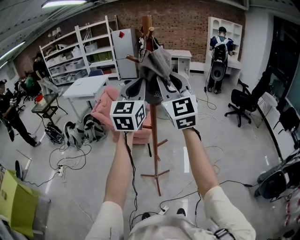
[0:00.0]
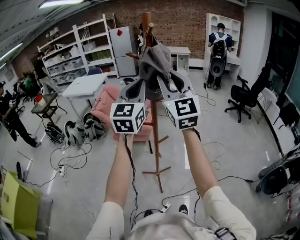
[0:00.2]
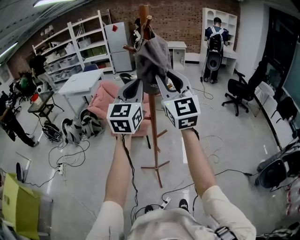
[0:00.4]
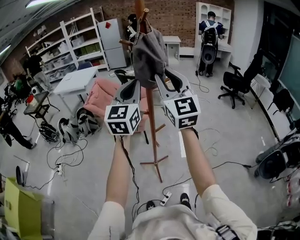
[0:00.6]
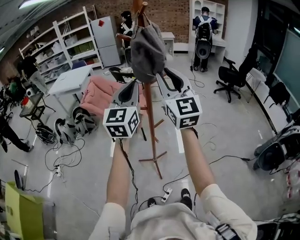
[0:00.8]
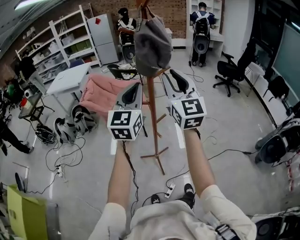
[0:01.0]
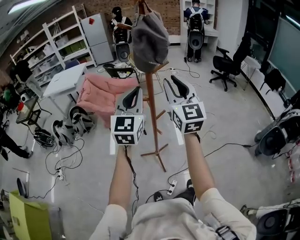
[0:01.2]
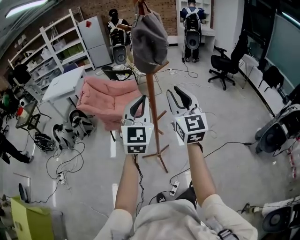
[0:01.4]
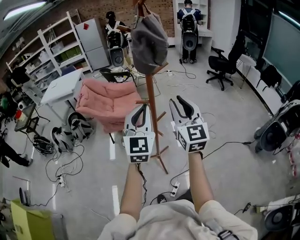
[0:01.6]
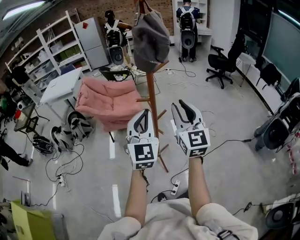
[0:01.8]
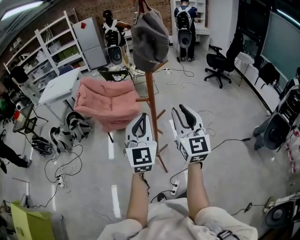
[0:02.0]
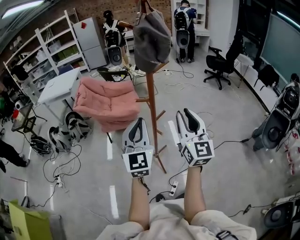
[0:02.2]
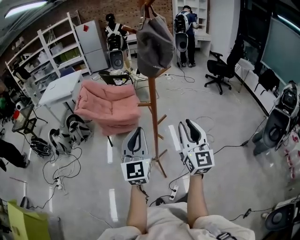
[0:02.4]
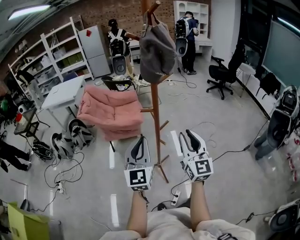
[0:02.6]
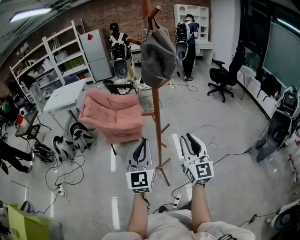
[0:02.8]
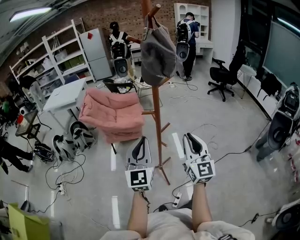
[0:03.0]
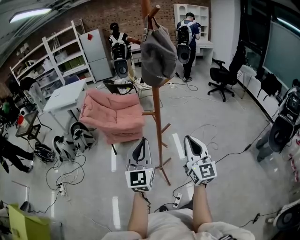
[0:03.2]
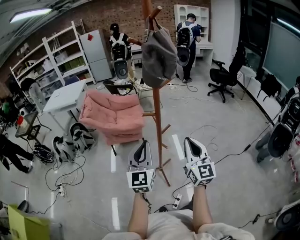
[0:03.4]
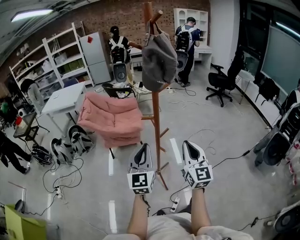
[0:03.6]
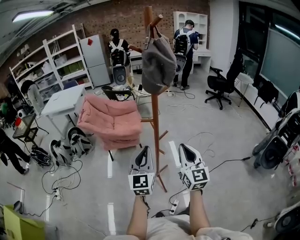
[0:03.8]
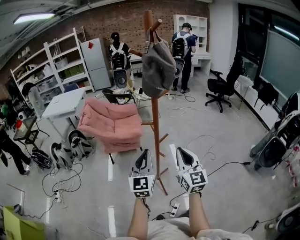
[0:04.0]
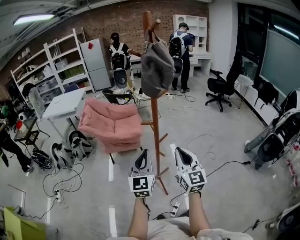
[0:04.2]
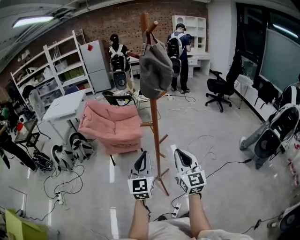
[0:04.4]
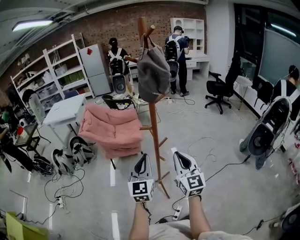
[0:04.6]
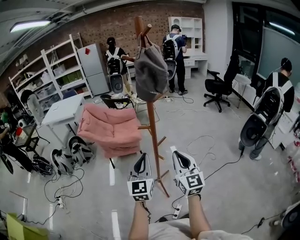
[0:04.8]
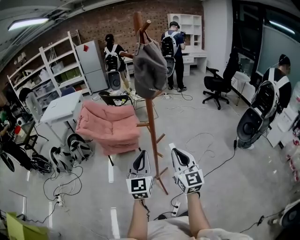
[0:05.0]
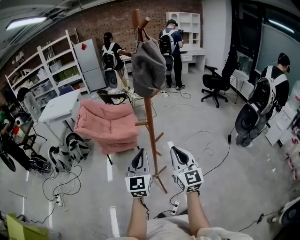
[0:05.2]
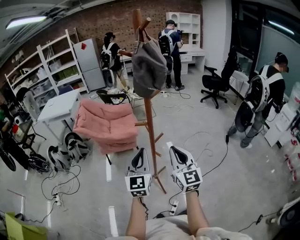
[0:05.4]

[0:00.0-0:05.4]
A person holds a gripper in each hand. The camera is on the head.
0.0 to 1.4 s: The two grippers go some 20 cm downward and backward. The right gripper rotates about 20 degrees.
1.4 to 2.8 s: The grippers both shift downward and backward by some 15 cm.
2.8 to 4.0 s: The right gripper closes.
4.0 to 5.4 s: The two grippers keep their place.

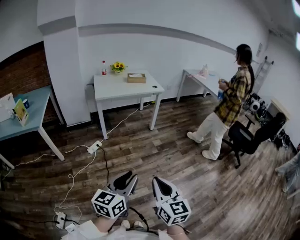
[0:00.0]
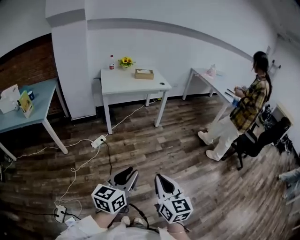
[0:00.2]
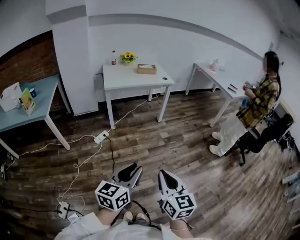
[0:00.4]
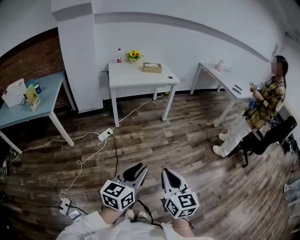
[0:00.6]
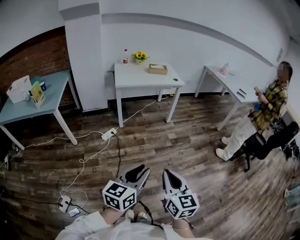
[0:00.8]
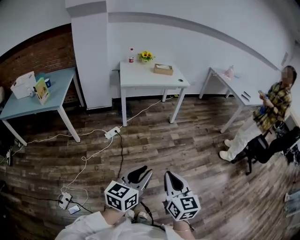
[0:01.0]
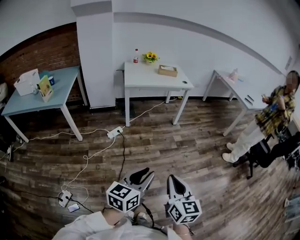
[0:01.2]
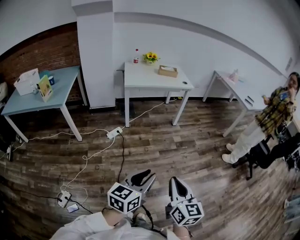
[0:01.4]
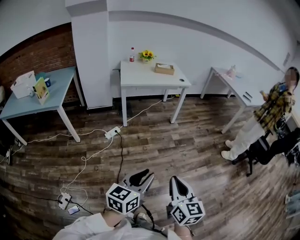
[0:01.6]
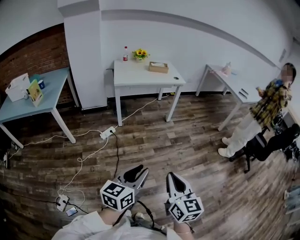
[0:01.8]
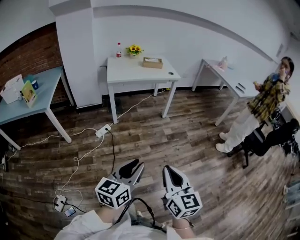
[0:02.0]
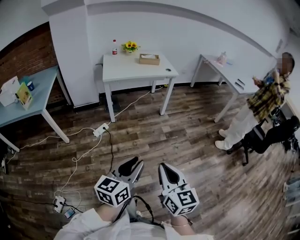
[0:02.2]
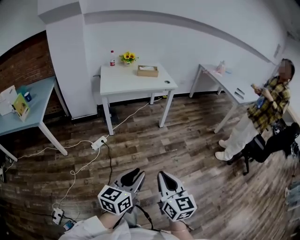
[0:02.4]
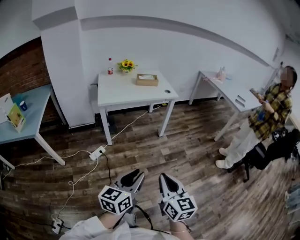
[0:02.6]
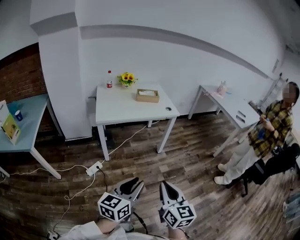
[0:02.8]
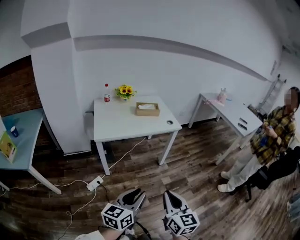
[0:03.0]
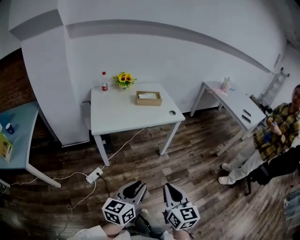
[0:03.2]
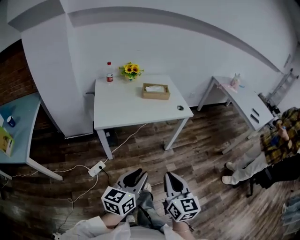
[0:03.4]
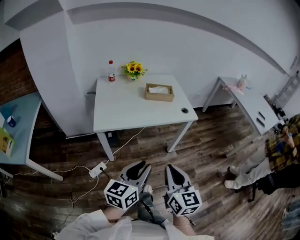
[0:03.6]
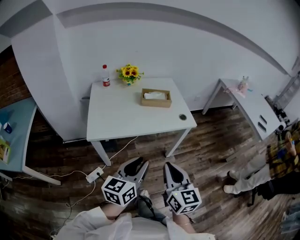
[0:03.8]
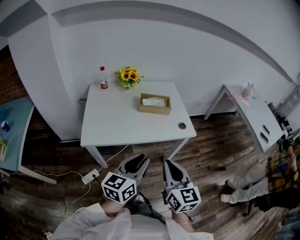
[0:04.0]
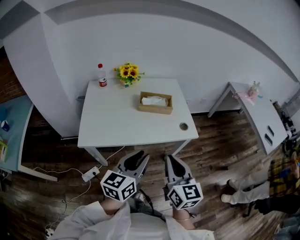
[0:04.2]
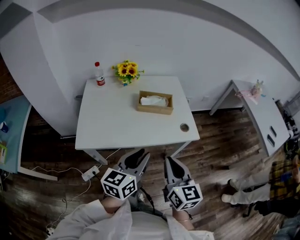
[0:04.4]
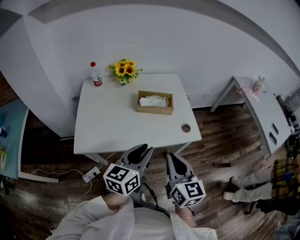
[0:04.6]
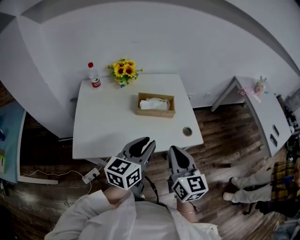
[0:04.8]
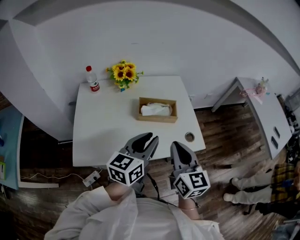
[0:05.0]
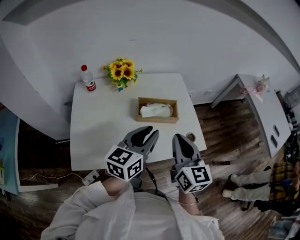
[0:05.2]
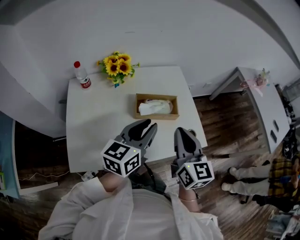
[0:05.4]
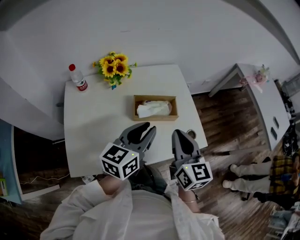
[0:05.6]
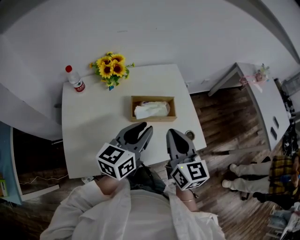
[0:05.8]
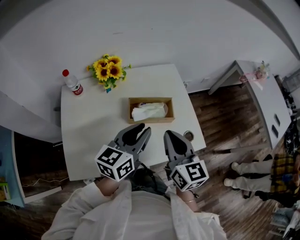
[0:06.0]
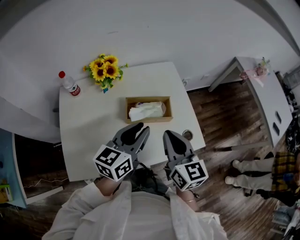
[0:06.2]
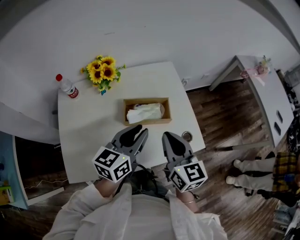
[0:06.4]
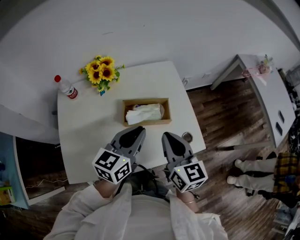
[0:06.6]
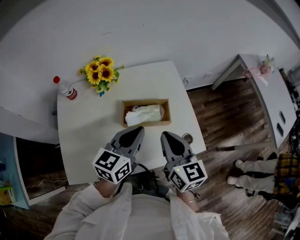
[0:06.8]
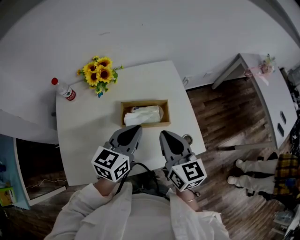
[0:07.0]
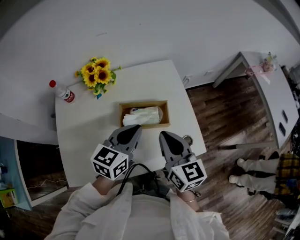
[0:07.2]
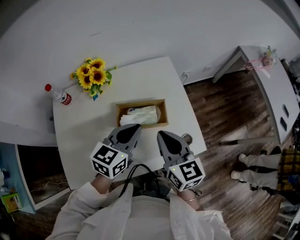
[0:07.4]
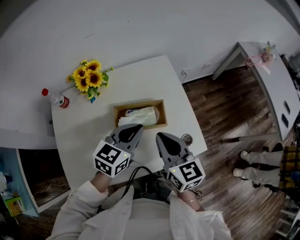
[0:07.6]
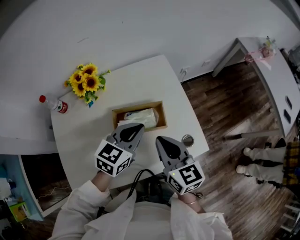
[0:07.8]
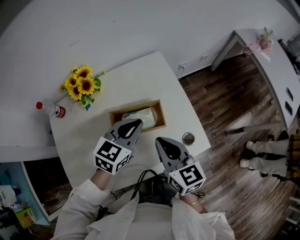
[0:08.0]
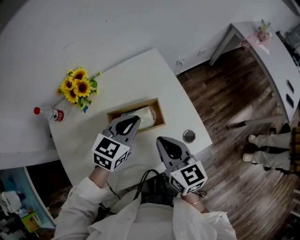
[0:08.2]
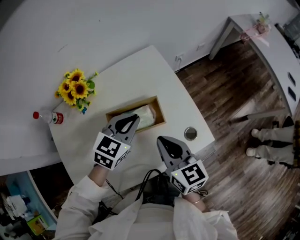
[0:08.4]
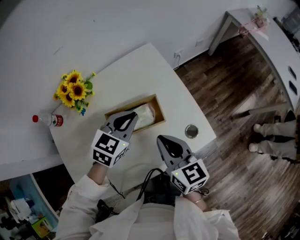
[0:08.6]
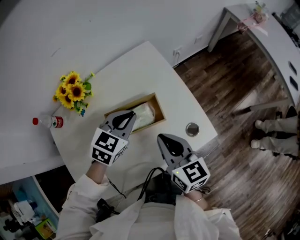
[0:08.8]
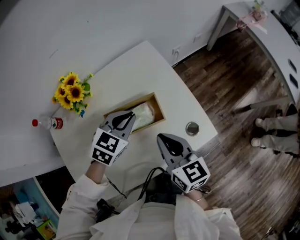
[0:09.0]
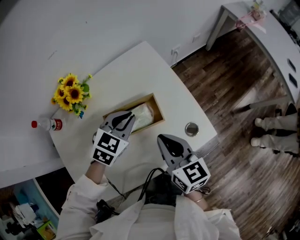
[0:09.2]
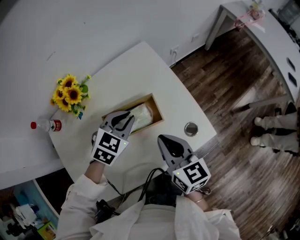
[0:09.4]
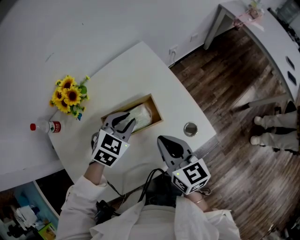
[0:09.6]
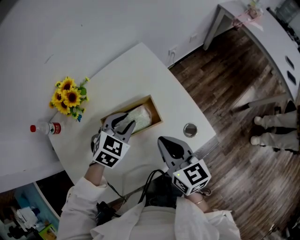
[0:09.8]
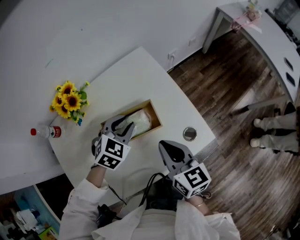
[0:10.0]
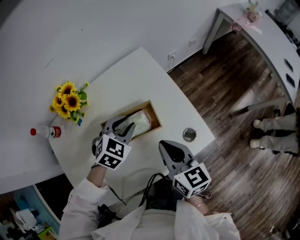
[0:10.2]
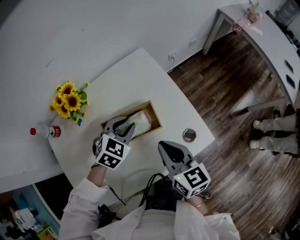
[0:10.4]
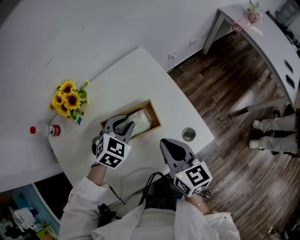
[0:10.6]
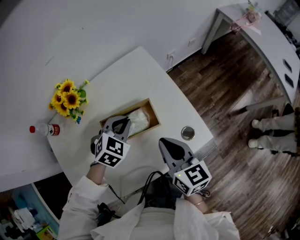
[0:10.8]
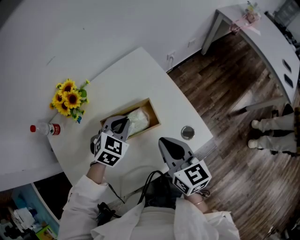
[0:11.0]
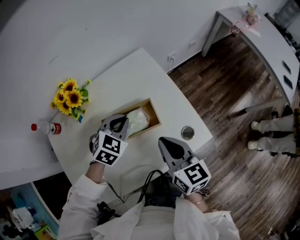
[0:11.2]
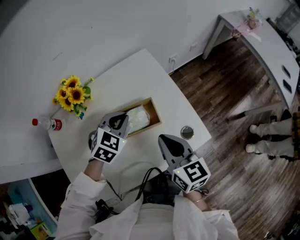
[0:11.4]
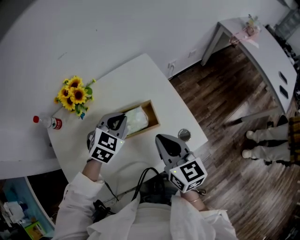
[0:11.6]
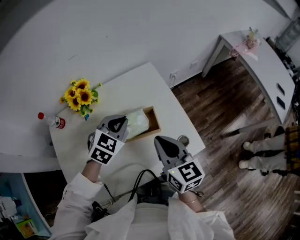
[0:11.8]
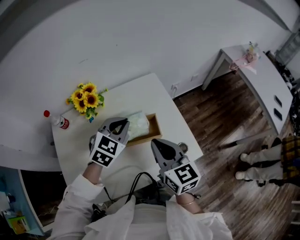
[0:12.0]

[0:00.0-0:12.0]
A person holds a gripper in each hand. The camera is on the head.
0.0 to 1.6 s: The grippers stay close to where they were, moving slightly.
1.6 to 3.0 s: Both grippers travel together forward, about 40 cm.
3.0 to 4.4 s: Both grippers are carried forward, some 40 cm.
4.4 to 6.0 s: Both grippers travel together forward, roughly 25 cm.
6.0 to 7.6 s: Both grippers move forward and downward, roughly 10 cm. The left gripper rotates approximately 20 degrees, and closes.
7.6 to 9.0 s: The left gripper heads downward and forward, covering about 10 cm, and rotates roughly 30 degrees.
9.0 to 10.4 s: The left gripper opens.
10.4 to 12.0 s: Both grippers travel together upward, approximately 10 cm. The left gripper closes its fingers.

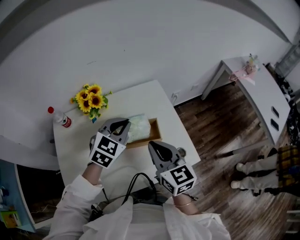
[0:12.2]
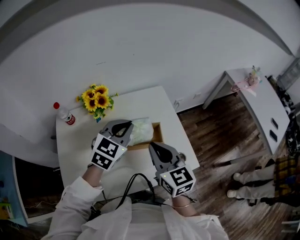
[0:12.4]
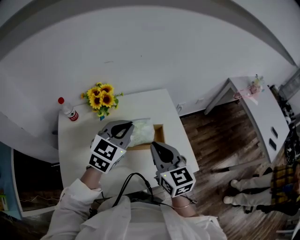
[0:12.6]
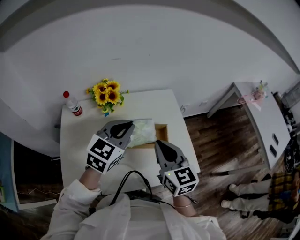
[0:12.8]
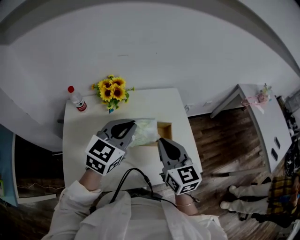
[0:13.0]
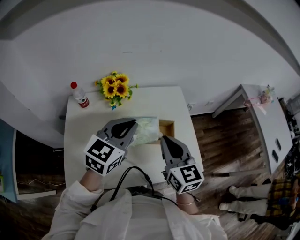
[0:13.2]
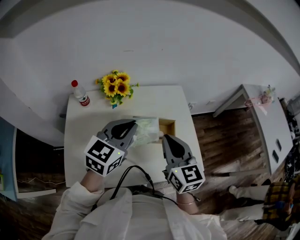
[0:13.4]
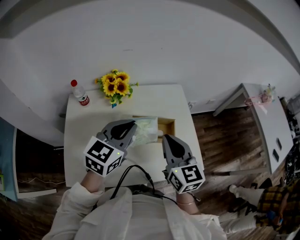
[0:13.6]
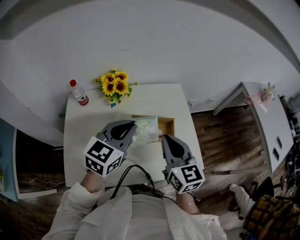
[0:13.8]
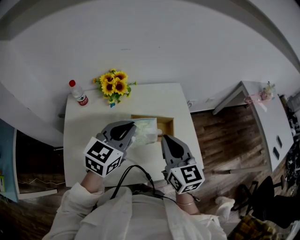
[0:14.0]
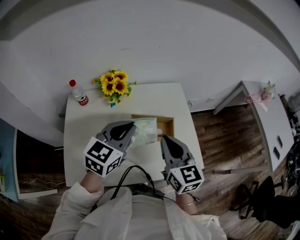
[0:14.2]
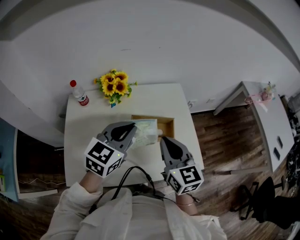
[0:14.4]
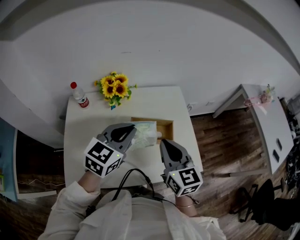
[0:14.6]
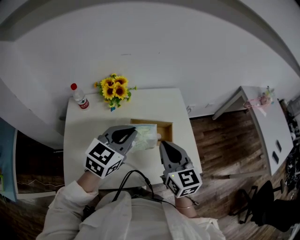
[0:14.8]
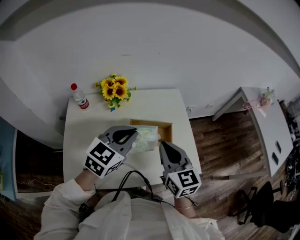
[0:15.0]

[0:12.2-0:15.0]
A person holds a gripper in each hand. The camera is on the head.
12.2 to 13.6 s: The left gripper travels backward, to the left and upward by roughly 10 cm, and changes its angle by about 20 degrees.
13.6 to 15.0 s: The grippers stay close to where they were, moving slightly.

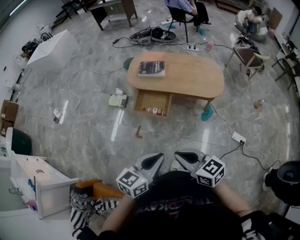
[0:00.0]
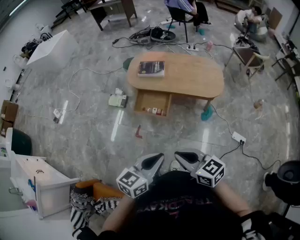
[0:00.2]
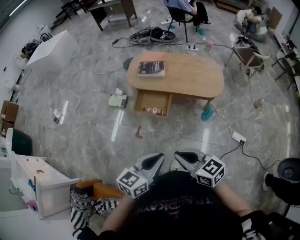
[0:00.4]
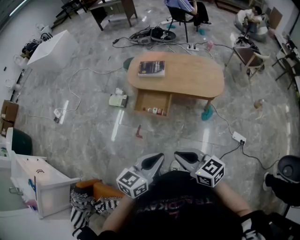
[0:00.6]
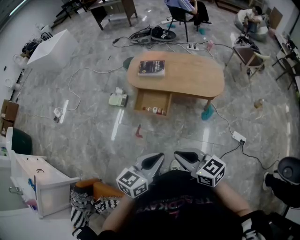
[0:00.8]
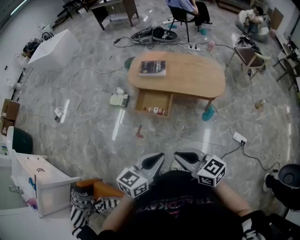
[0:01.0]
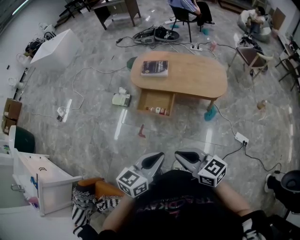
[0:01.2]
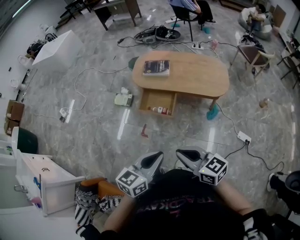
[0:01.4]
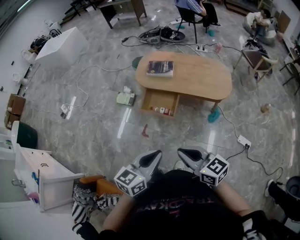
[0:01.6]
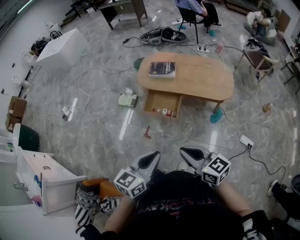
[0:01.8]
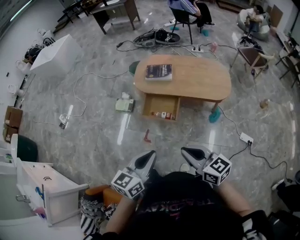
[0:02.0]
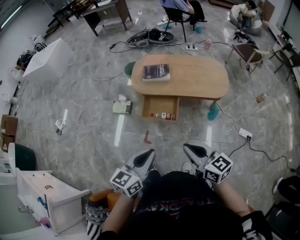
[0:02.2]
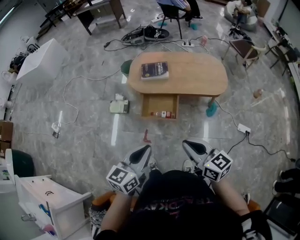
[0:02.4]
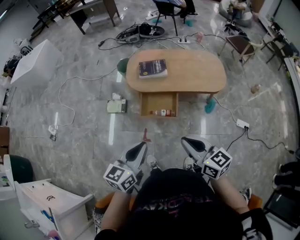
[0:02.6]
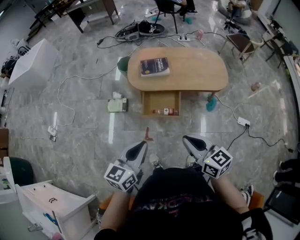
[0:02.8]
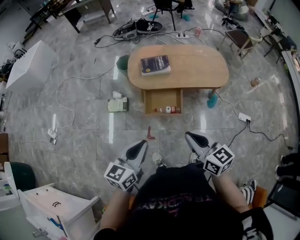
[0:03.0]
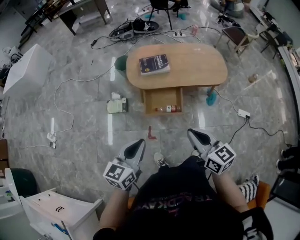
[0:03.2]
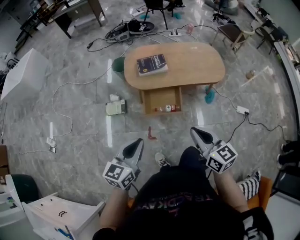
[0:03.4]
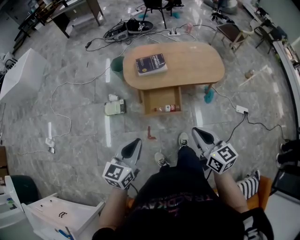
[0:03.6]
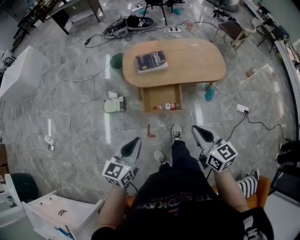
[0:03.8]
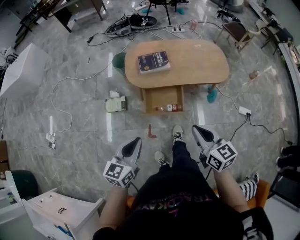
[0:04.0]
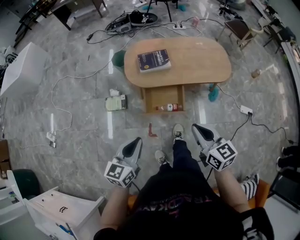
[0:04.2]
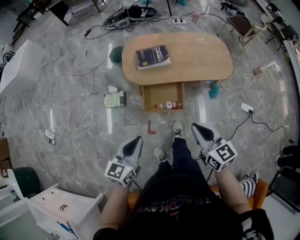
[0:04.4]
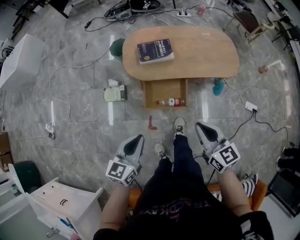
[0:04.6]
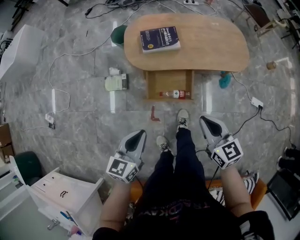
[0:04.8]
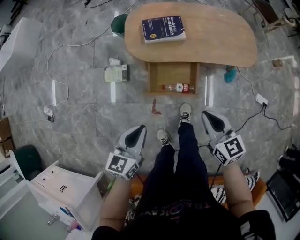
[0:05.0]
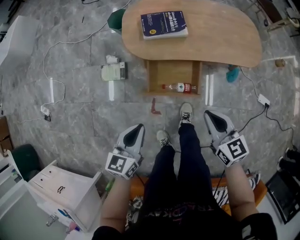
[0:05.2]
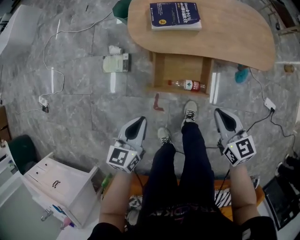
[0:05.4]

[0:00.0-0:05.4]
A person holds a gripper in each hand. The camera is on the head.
0.0 to 1.4 s: The grippers make only small movements.
1.4 to 2.8 s: The right gripper shifts roughly 20 cm forward and to the left, and rotates approximately 20 degrees, while the left gripper heads to the left and forward, covering some 30 cm.
2.8 to 4.0 s: The right gripper travels forward by some 5 cm; the left gripper travels to the left, forward and downward by about 10 cm.
4.0 to 5.4 s: The two grippers go roughly 30 cm downward and forward.
